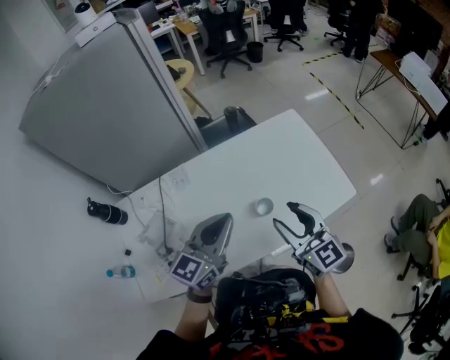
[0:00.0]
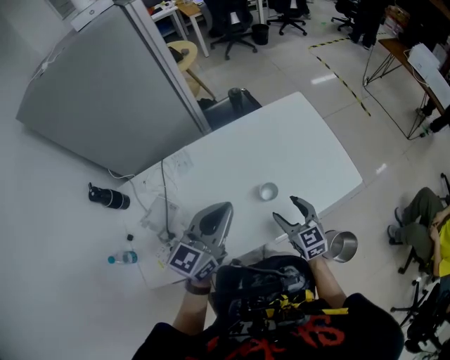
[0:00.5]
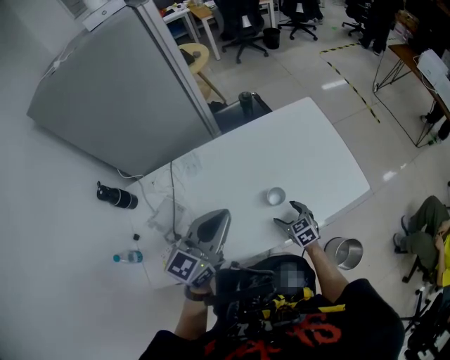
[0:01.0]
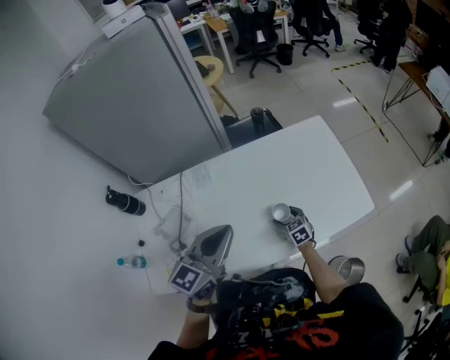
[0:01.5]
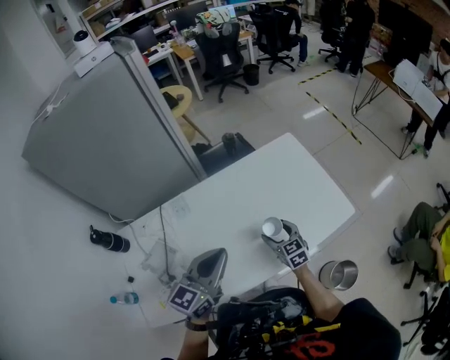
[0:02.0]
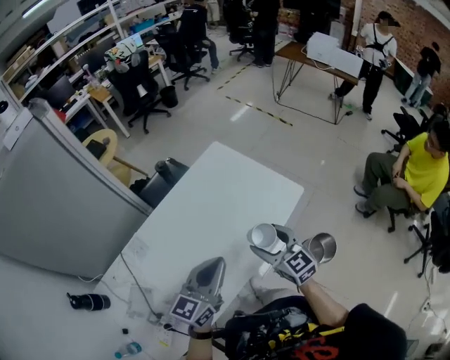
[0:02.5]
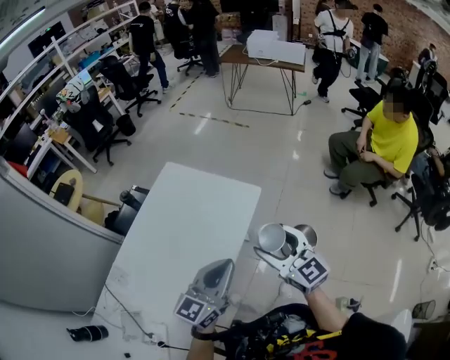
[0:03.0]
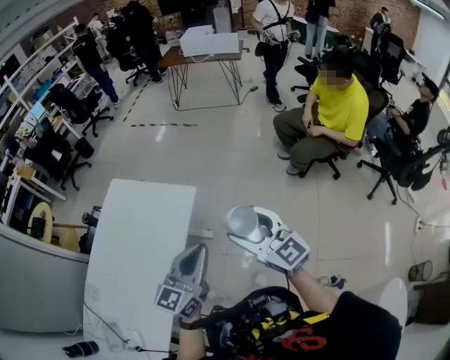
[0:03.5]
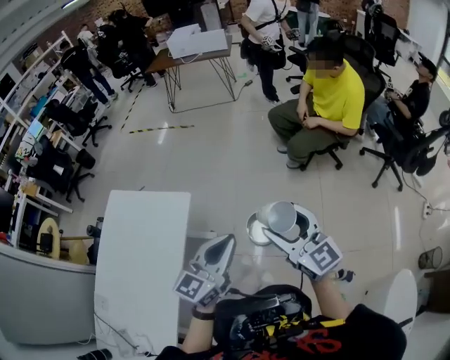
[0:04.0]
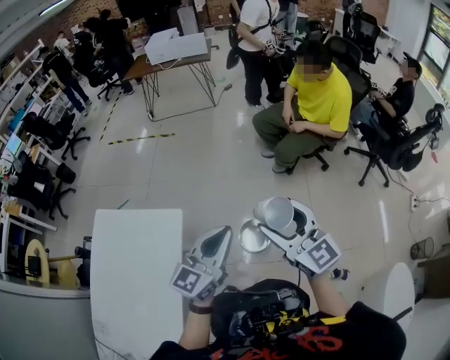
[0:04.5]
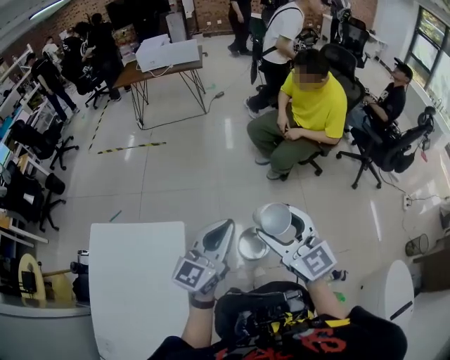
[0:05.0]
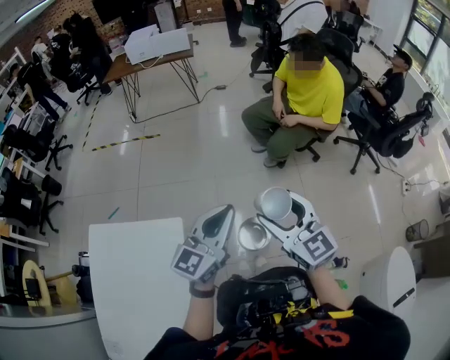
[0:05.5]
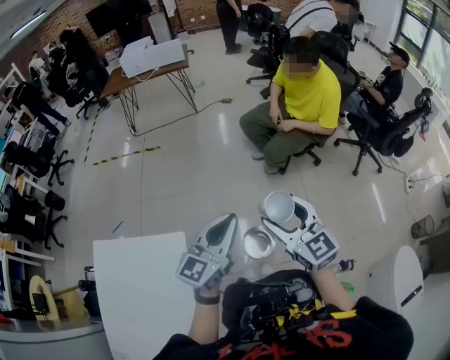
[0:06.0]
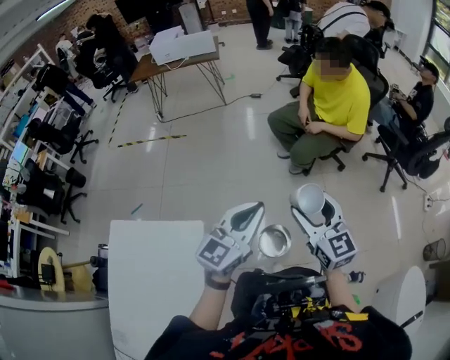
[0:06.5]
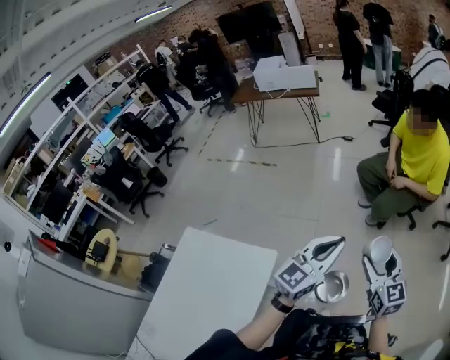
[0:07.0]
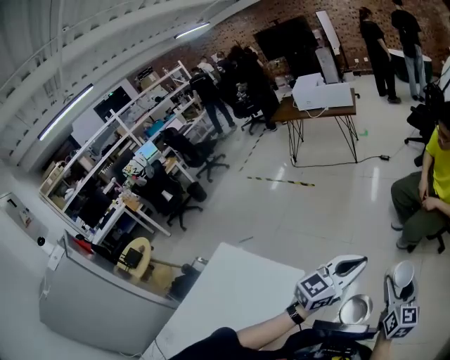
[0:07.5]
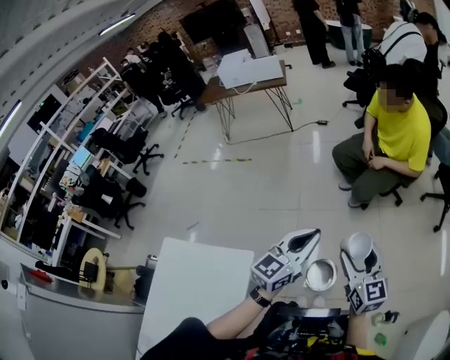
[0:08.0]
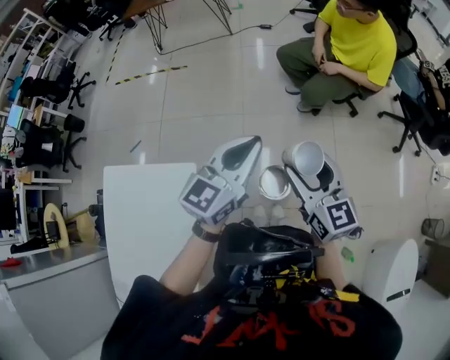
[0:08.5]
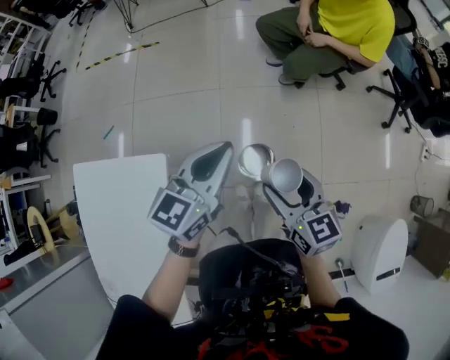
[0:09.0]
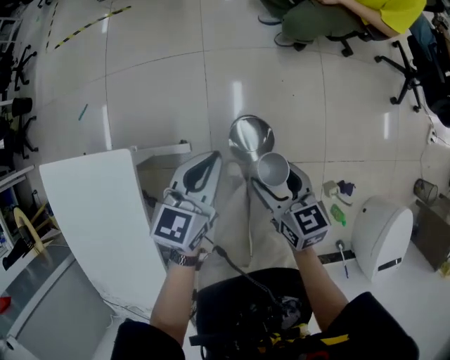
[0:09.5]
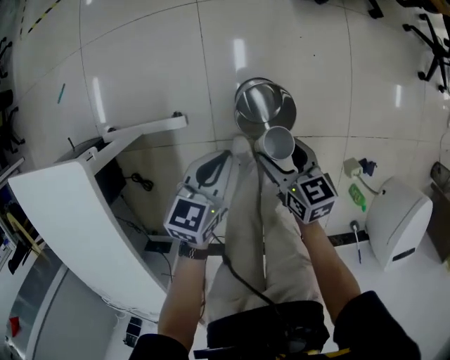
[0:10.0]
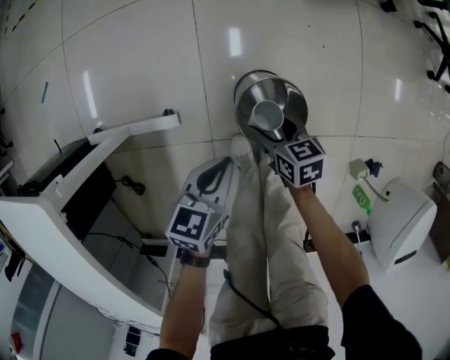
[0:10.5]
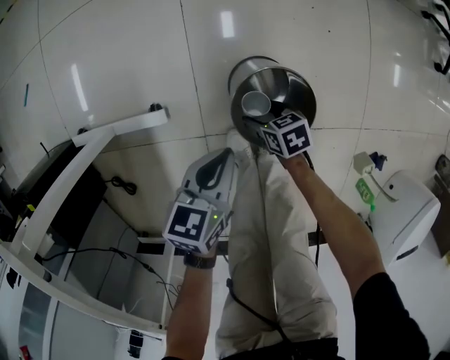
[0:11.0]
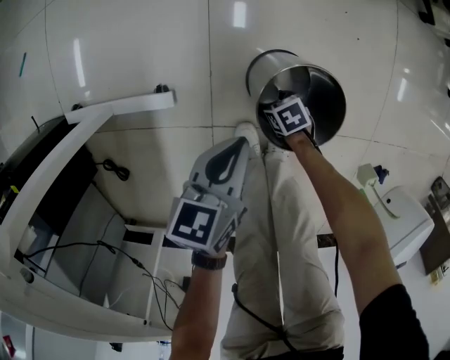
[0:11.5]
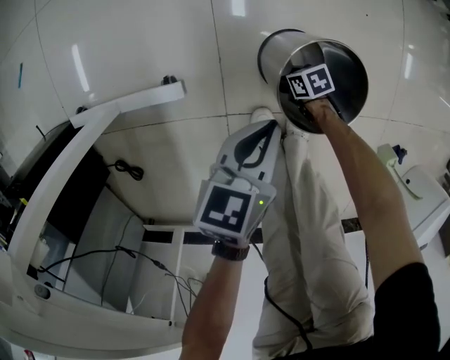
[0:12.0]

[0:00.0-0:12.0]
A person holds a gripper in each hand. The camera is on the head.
0:00.0 to 0:02.0: The right gripper goes about 25 cm downward and forward, and changes its angle by approximately 20 degrees.
0:02.0 to 0:04.0: Both grippers are carried about 60 cm. The left gripper rotates some 60 degrees, while the right gripper turns by about 60 degrees.
0:04.0 to 0:06.0: Both grippers travel together forward, roughly 20 cm. The right gripper swivels roughly 20 degrees.
0:06.0 to 0:08.0: The right gripper changes place by some 10 cm. Meanwhile the left gripper is displaced forward by roughly 5 cm.
0:08.0 to 0:10.0: Both grippers travel together downward, approximately 50 cm. The left gripper angles its fingers downward, by approximately 40 degrees. Meanwhile the right gripper points its fingers roughly 30 degrees further downward.
0:10.0 to 0:12.0: The right gripper shifts some 50 cm downward, and rotates approximately 40 degrees. The left gripper goes roughly 20 cm downward.

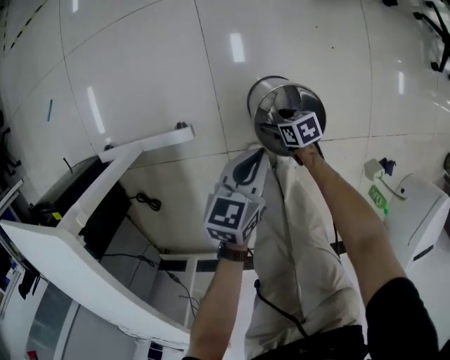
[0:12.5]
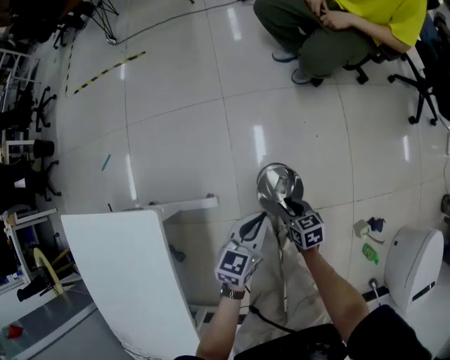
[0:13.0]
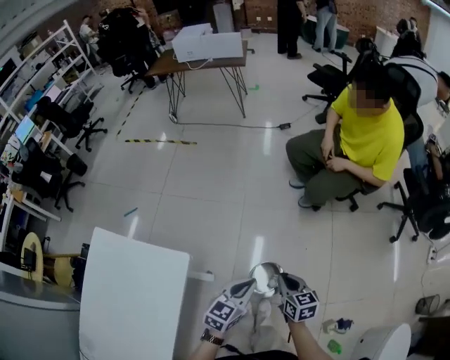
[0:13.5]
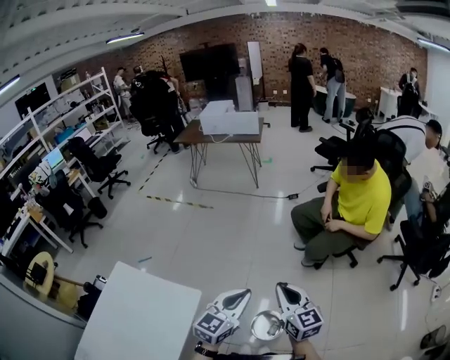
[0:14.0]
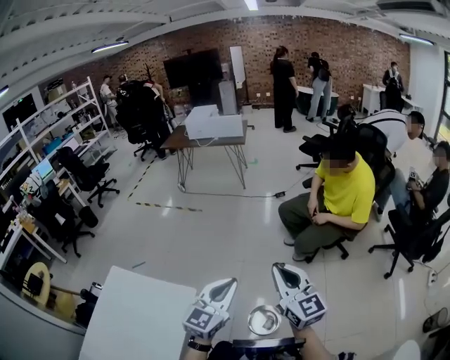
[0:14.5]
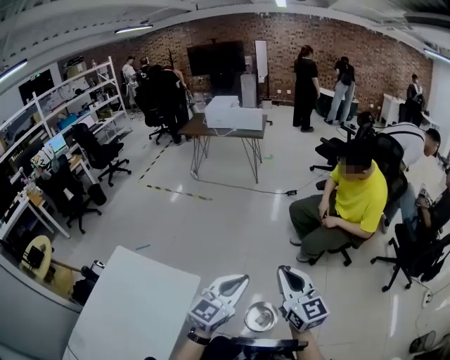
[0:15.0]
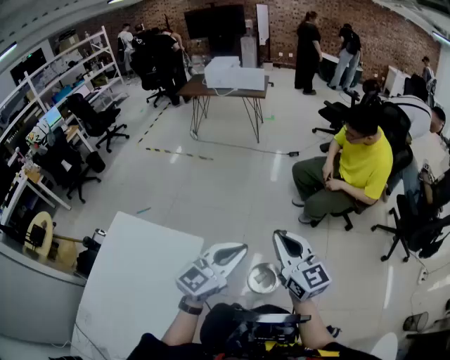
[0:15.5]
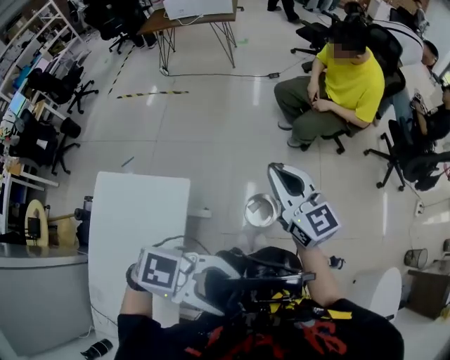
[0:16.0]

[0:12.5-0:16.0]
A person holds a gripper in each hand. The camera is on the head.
0:12.5 to 0:14.5: The grippers both shift upward by some 80 cm. The left gripper tips its fingers upward by some 40 degrees. Meanwhile the right gripper tilts its fingers approximately 60 degrees upward, and closes.
0:14.5 to 0:16.0: The left gripper moves roughly 30 cm, swivels approximately 80 degrees, and opens up.

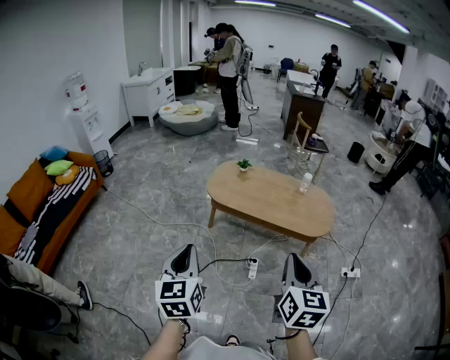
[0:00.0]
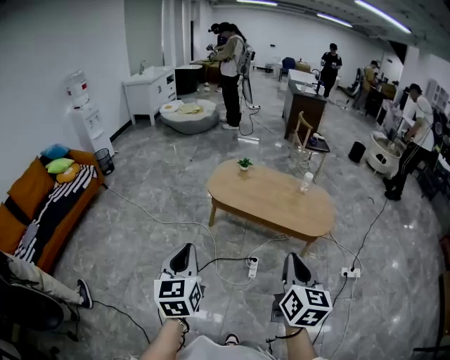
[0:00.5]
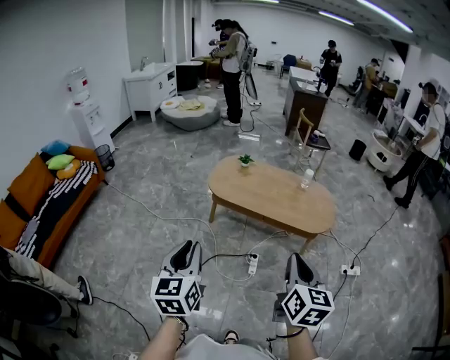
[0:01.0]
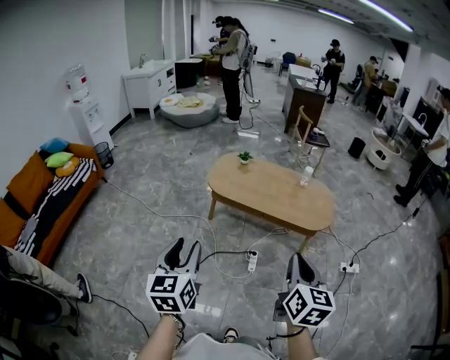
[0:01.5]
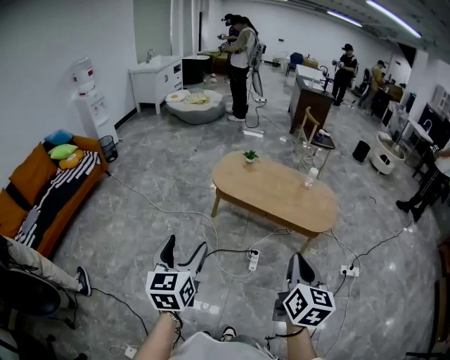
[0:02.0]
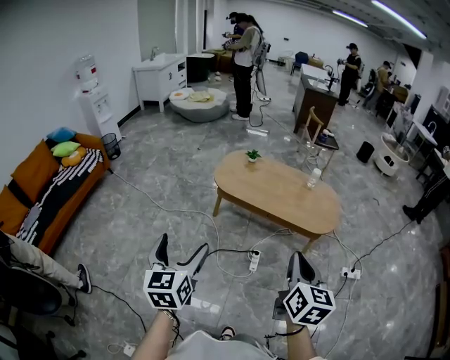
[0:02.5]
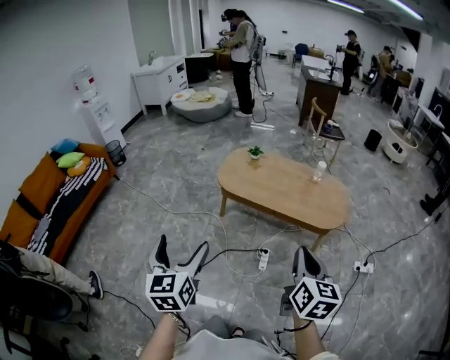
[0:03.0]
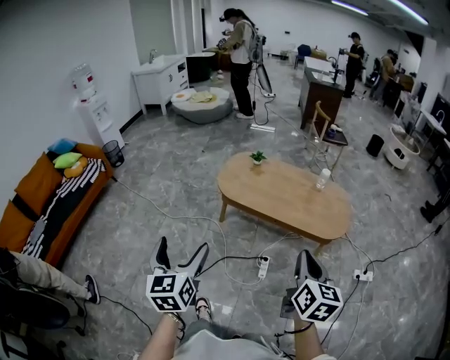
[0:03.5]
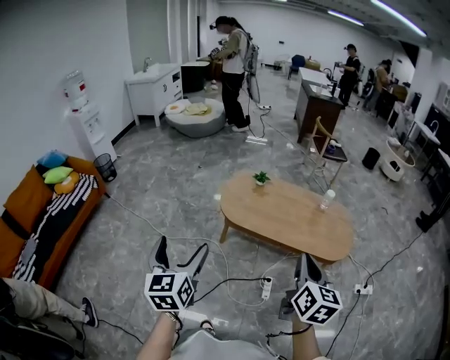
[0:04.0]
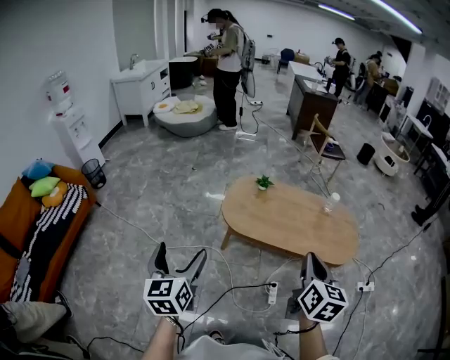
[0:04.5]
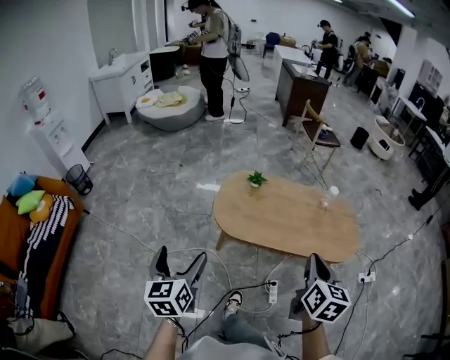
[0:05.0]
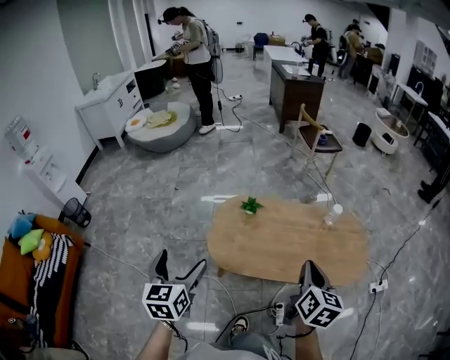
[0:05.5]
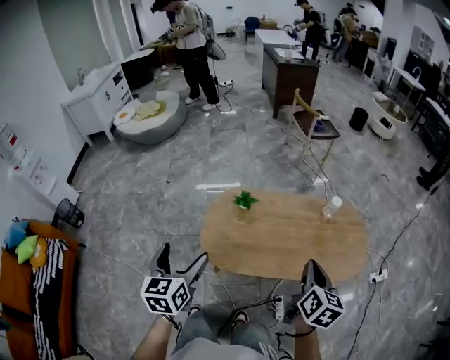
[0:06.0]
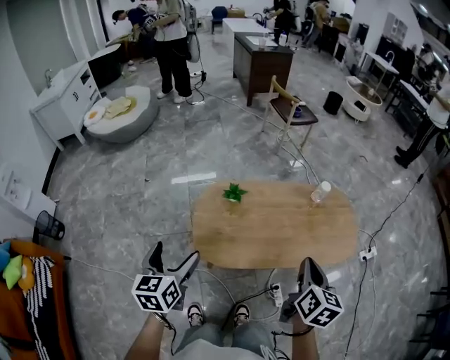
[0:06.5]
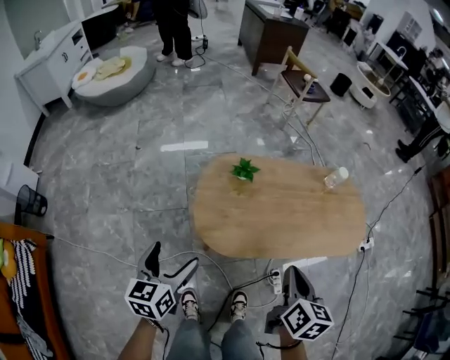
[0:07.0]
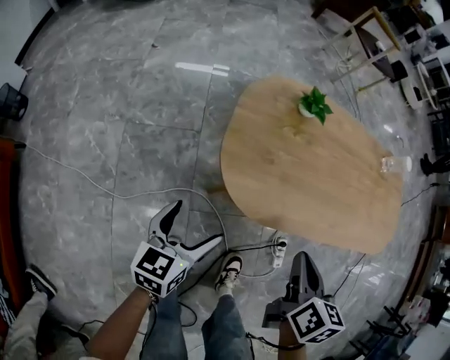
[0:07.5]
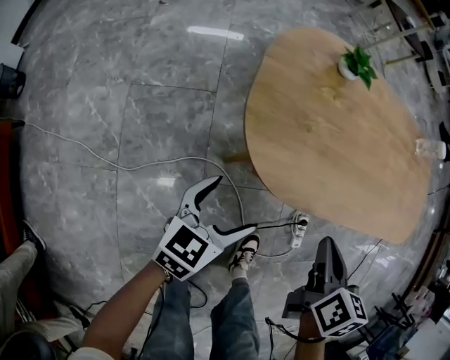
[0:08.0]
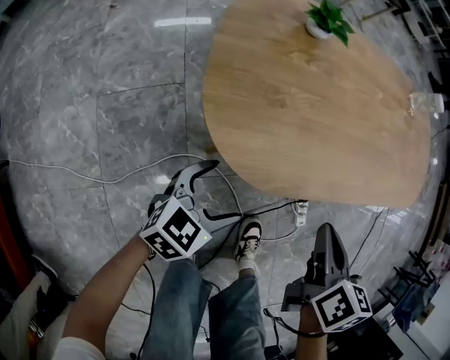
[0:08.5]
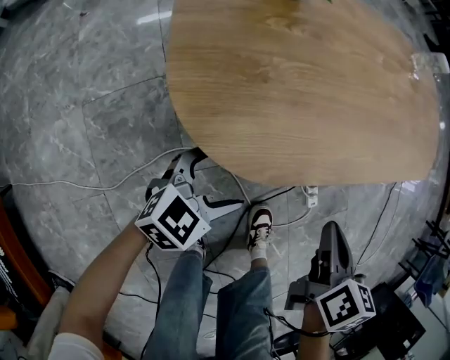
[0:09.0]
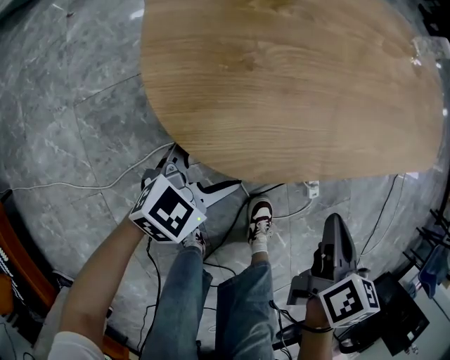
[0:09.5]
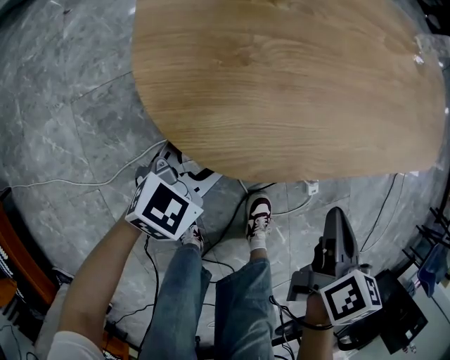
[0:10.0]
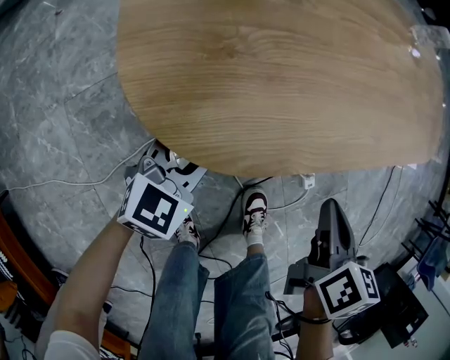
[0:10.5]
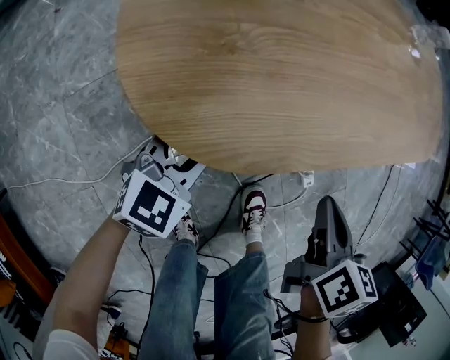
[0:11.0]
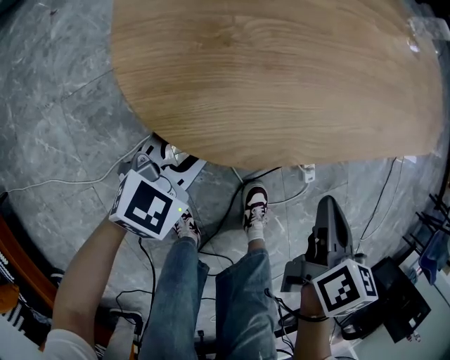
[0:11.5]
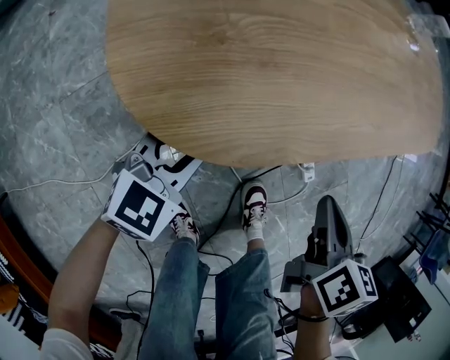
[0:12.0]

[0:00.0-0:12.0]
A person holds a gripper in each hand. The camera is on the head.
0:00.0 to 0:02.0: The left gripper opens its fingers.
0:02.0 to 0:04.0: The grippers both shift forward by approximately 20 cm.
0:04.0 to 0:06.0: The two grippers go roughly 40 cm forward. The left gripper changes its angle by about 20 degrees, while the right gripper changes its angle by approximately 20 degrees.
0:06.0 to 0:08.0: The left gripper shifts about 50 cm downward, and changes its angle by roughly 40 degrees. The right gripper moves downward and to the left, about 40 cm, and turns by roughly 20 degrees.
0:08.0 to 0:10.0: The left gripper heads downward and forward, covering about 10 cm, changes its angle by about 30 degrees, and closes up; the right gripper moves to the right and downward, approximately 10 cm.
0:10.0 to 0:12.0: The grippers stay close to where they were, moving slightly.
